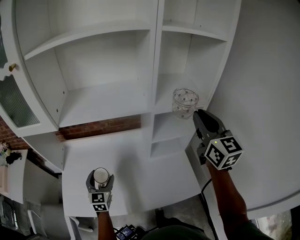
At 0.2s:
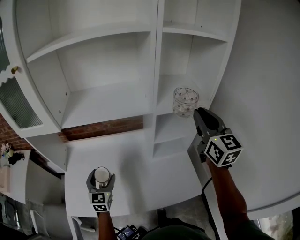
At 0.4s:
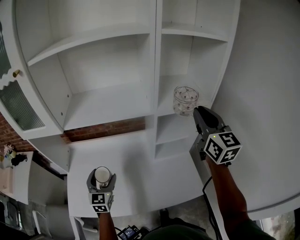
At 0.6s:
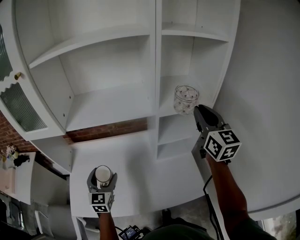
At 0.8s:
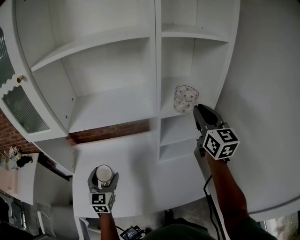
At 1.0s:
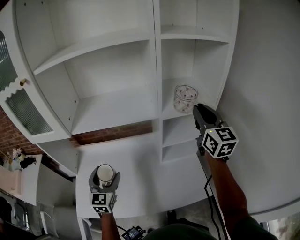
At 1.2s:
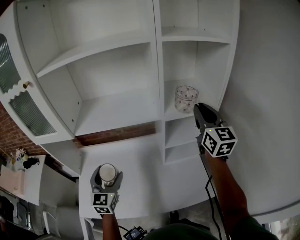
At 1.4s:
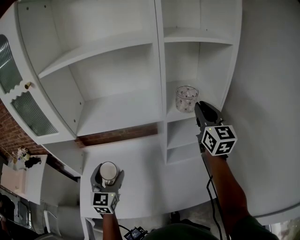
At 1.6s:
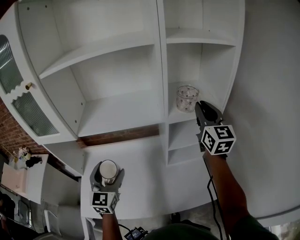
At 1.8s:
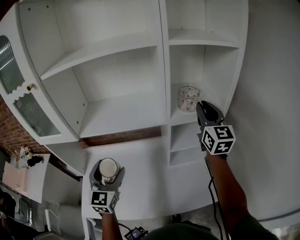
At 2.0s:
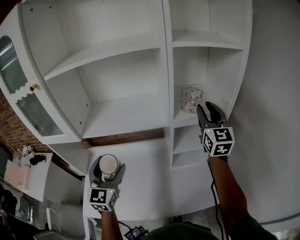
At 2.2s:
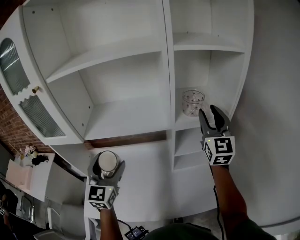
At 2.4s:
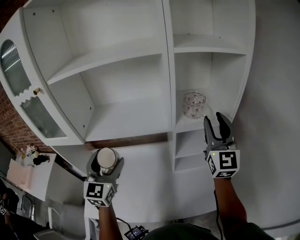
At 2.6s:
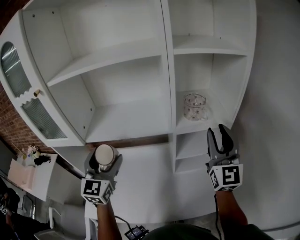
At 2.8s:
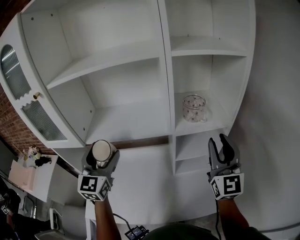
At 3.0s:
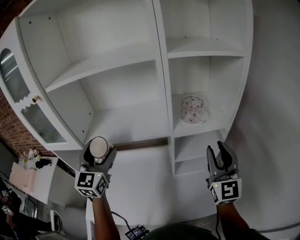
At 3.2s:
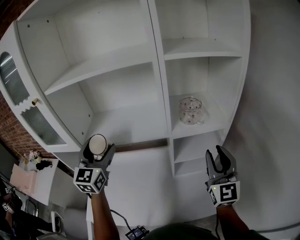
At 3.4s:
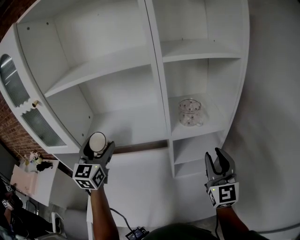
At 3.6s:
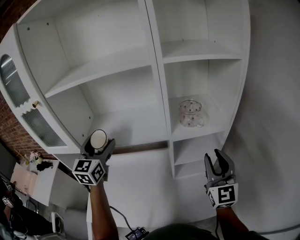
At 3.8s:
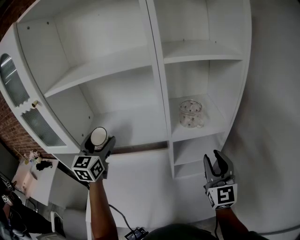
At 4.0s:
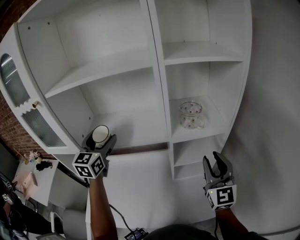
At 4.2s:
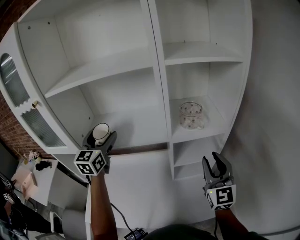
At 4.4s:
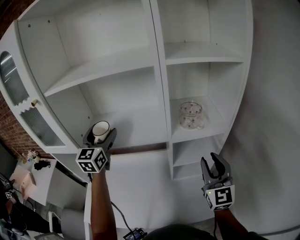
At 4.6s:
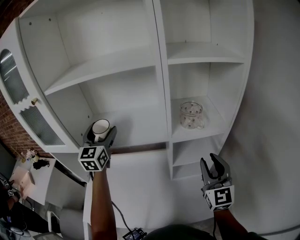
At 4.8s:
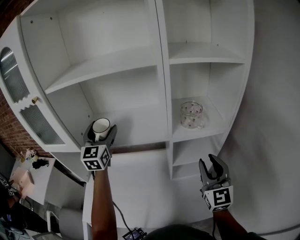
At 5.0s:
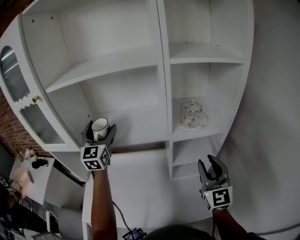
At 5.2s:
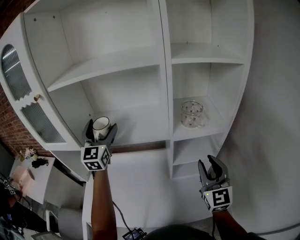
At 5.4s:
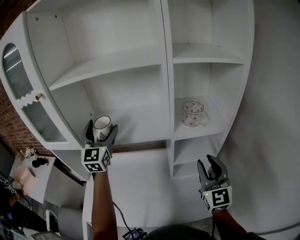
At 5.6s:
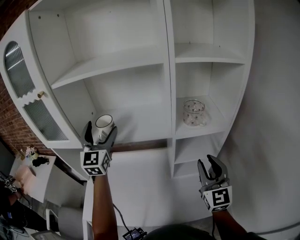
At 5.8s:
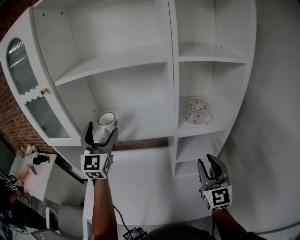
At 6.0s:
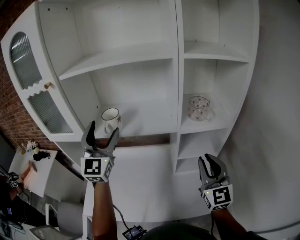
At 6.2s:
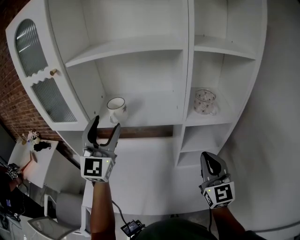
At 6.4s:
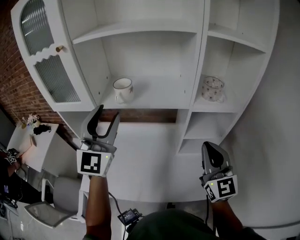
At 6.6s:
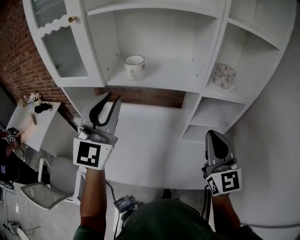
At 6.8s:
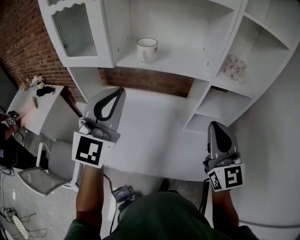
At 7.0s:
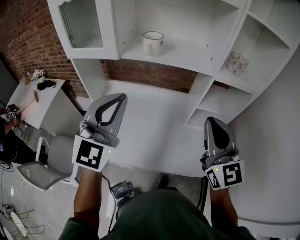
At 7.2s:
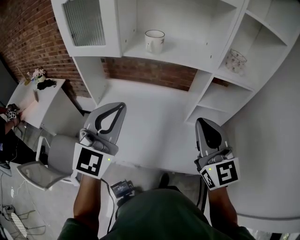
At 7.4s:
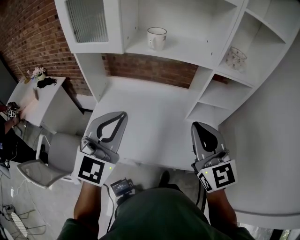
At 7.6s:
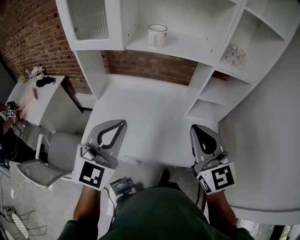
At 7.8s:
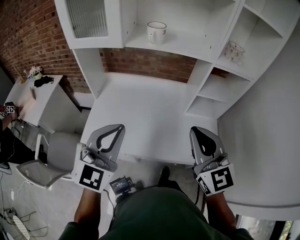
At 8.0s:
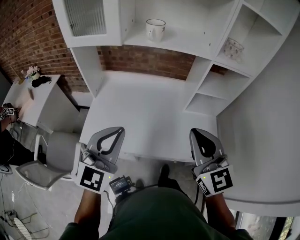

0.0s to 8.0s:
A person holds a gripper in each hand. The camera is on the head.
0.0s to 1.6s: The right gripper is displaced forward by approximately 10 cm. The left gripper shifts some 15 cm upward.
1.6s to 3.2s: The right gripper shifts some 10 cm backward. Meanwhile the left gripper goes approximately 15 cm upward and forward.
3.2s to 4.8s: The left gripper travels forward by roughly 10 cm.
4.8s to 6.4s: The right gripper heads to the left and backward, covering some 10 cm, and closes; the left gripper goes approximately 20 cm backward, and closes its fingers.
6.4s to 8.0s: The left gripper is displaced backward and downward by about 30 cm, turns by about 20 degrees, and closes. The right gripper shifts some 20 cm to the left and backward.

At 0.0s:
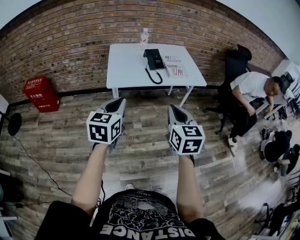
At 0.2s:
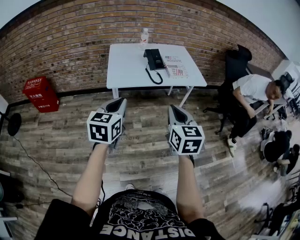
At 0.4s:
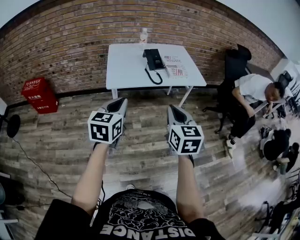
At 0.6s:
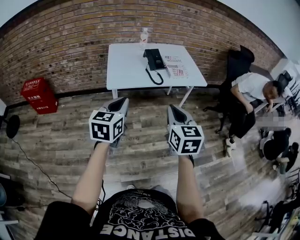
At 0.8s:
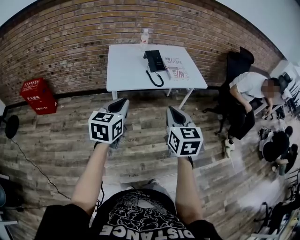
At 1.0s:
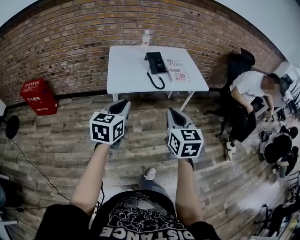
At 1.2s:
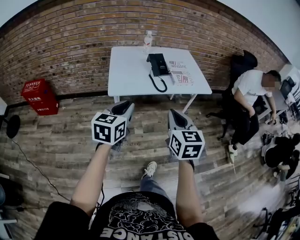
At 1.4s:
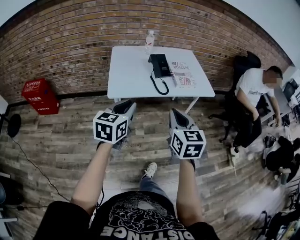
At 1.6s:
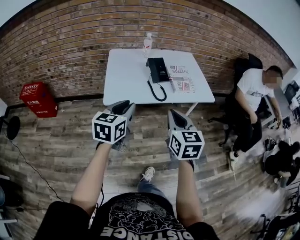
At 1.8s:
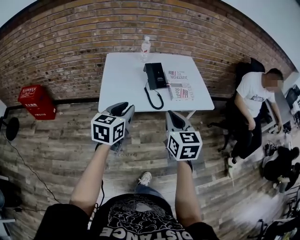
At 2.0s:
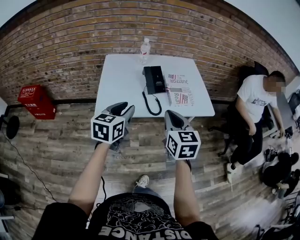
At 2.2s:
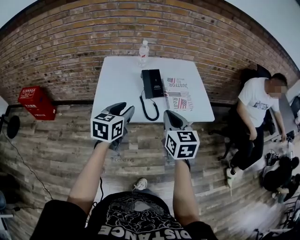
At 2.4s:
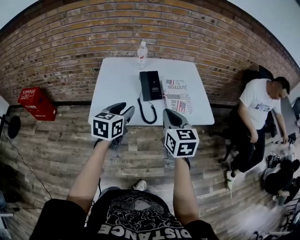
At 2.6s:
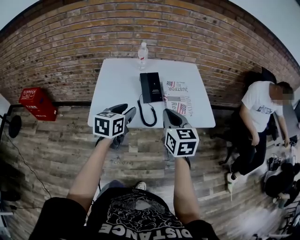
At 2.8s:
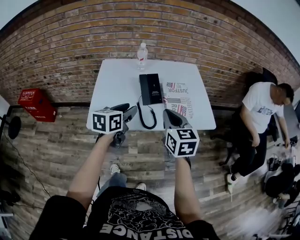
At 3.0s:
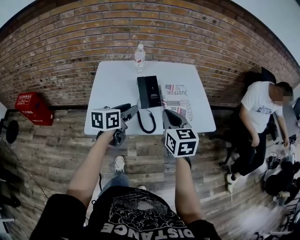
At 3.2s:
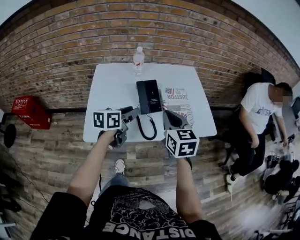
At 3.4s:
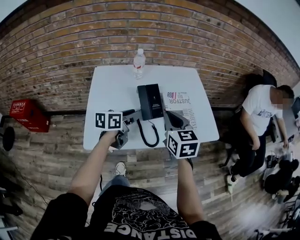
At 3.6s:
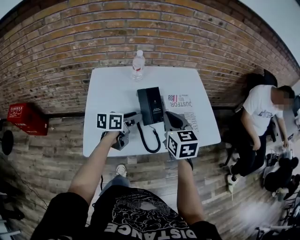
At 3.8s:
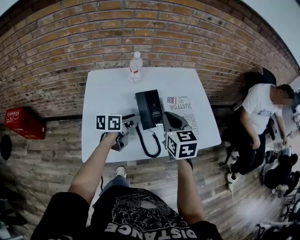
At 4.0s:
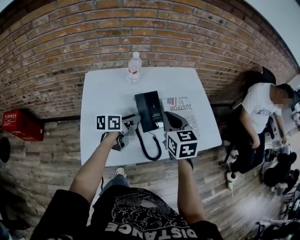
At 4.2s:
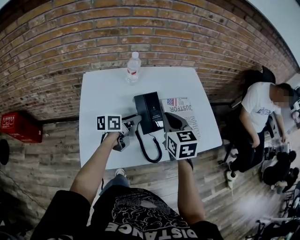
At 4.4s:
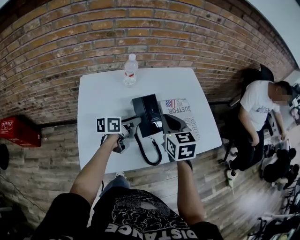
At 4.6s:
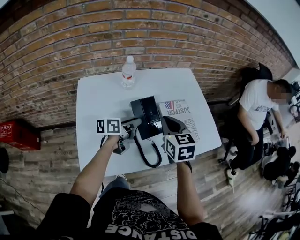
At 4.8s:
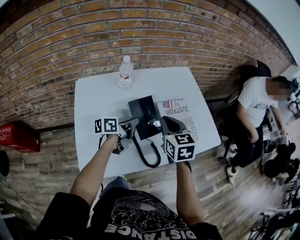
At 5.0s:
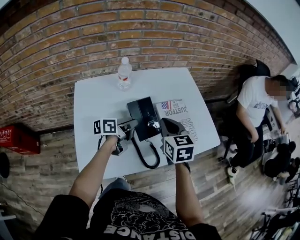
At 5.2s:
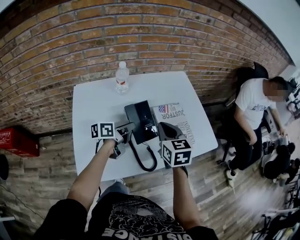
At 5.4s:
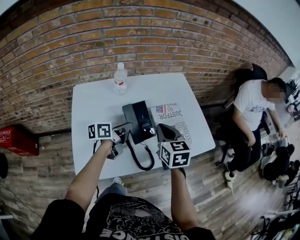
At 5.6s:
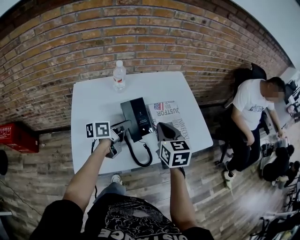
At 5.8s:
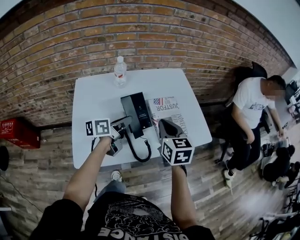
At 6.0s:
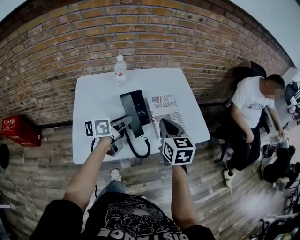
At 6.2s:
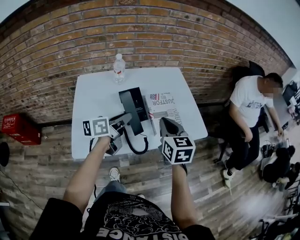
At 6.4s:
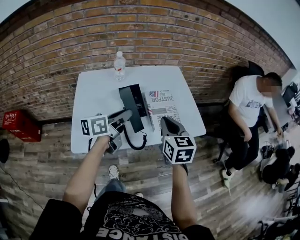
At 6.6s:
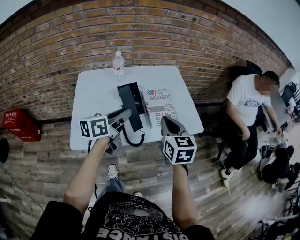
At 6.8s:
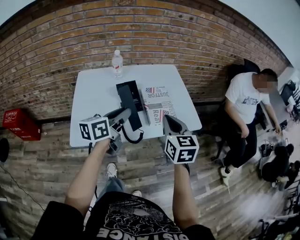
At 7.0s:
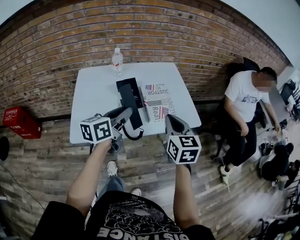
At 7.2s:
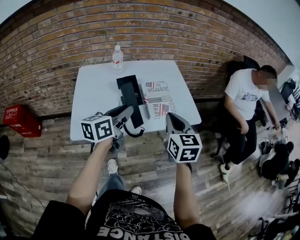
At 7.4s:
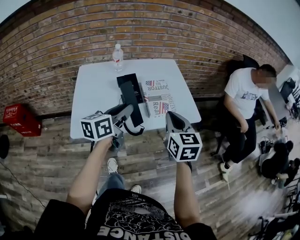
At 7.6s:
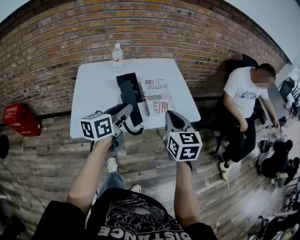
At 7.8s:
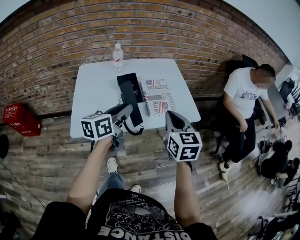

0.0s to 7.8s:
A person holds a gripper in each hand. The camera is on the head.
0.0s to 1.6s: The two grippers go some 15 cm forward.
1.6s to 3.2s: The grippers both shift forward by roughly 30 cm. The left gripper swivels roughly 30 degrees.
3.2s to 4.6s: The right gripper travels forward, downward and to the left by some 15 cm. Meanwhile the left gripper goes roughly 15 cm forward and downward, and rotates roughly 20 degrees.
4.6s to 6.2s: The right gripper goes roughly 10 cm to the right and backward, while the left gripper heads upward, backward and to the right, covering about 15 cm.
6.2s to 7.8s: The right gripper heads backward and to the right, covering approximately 10 cm. Meanwhile the left gripper shifts roughly 10 cm backward and upward.

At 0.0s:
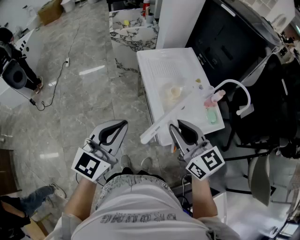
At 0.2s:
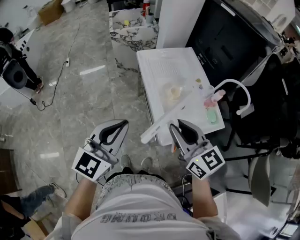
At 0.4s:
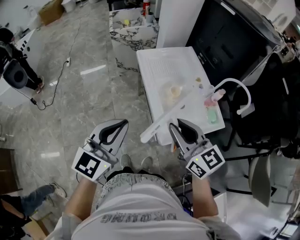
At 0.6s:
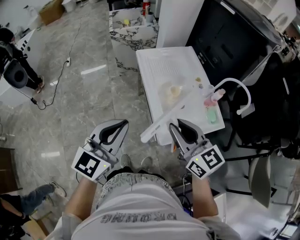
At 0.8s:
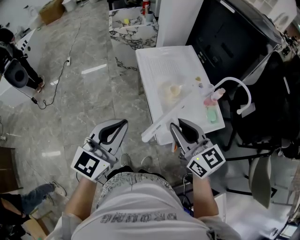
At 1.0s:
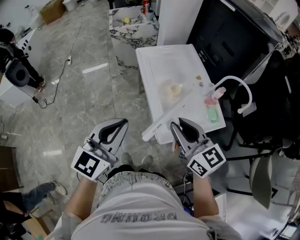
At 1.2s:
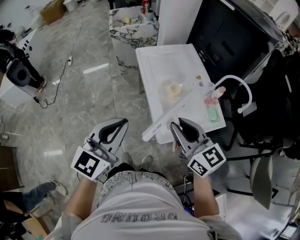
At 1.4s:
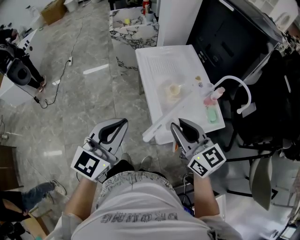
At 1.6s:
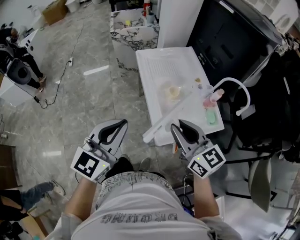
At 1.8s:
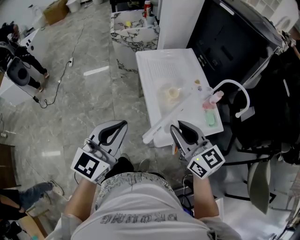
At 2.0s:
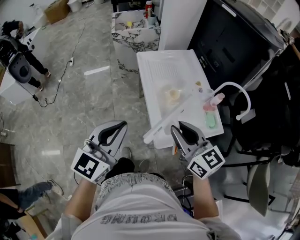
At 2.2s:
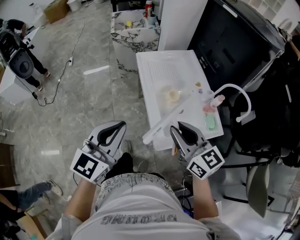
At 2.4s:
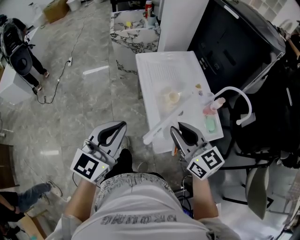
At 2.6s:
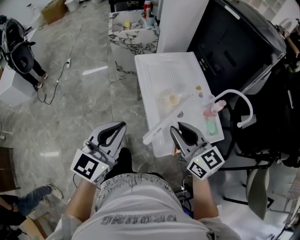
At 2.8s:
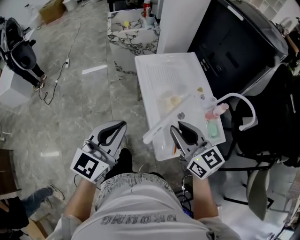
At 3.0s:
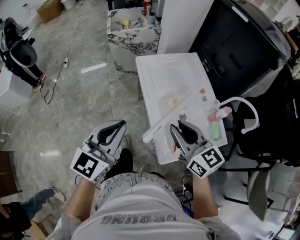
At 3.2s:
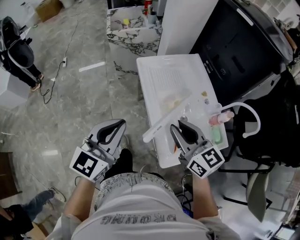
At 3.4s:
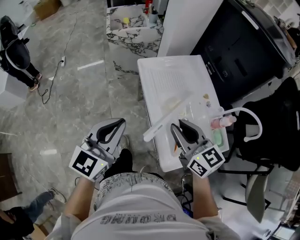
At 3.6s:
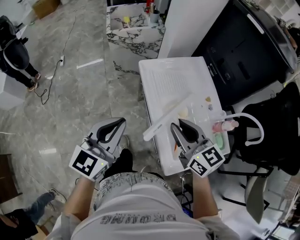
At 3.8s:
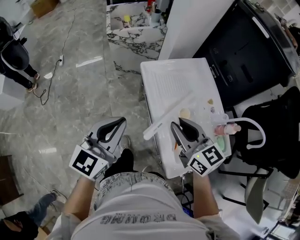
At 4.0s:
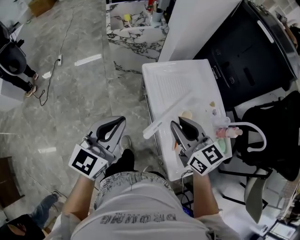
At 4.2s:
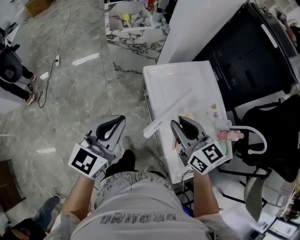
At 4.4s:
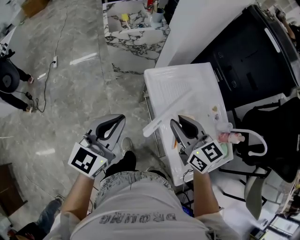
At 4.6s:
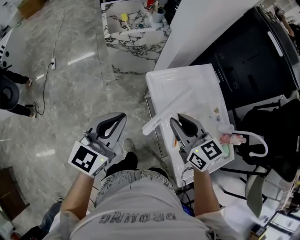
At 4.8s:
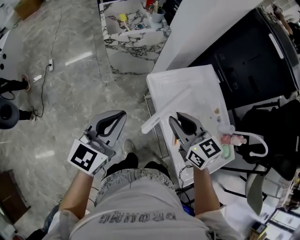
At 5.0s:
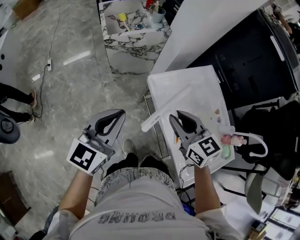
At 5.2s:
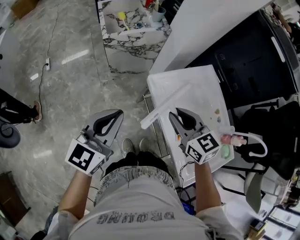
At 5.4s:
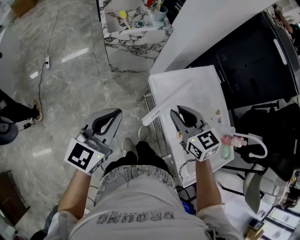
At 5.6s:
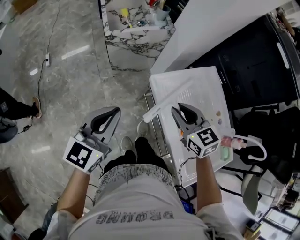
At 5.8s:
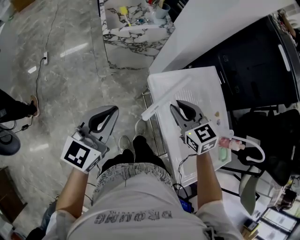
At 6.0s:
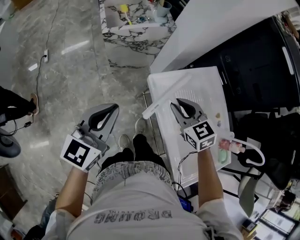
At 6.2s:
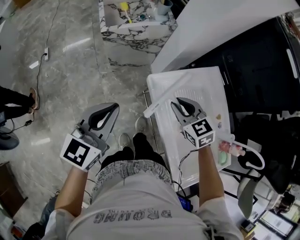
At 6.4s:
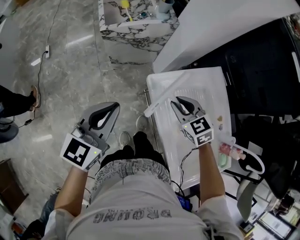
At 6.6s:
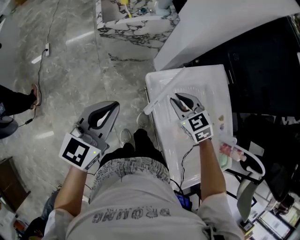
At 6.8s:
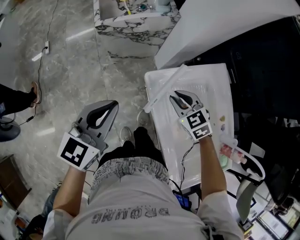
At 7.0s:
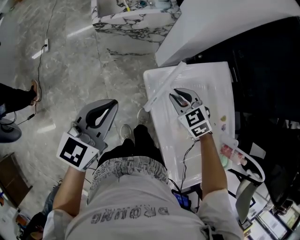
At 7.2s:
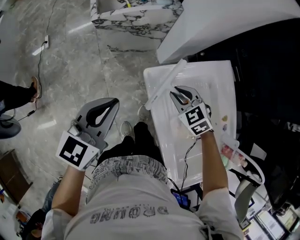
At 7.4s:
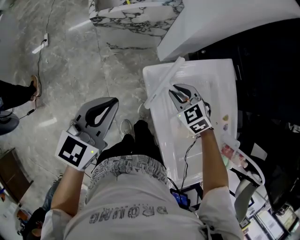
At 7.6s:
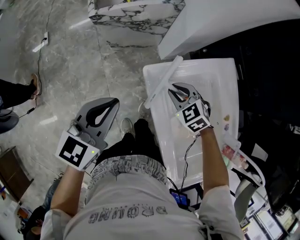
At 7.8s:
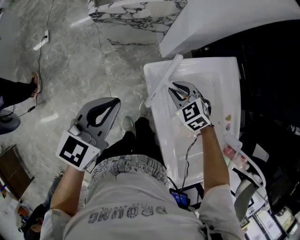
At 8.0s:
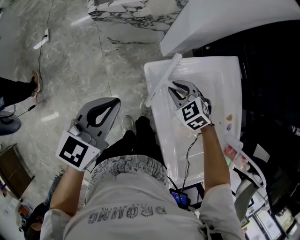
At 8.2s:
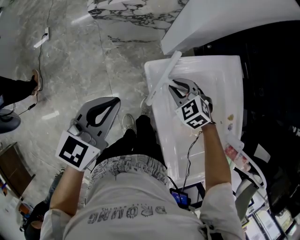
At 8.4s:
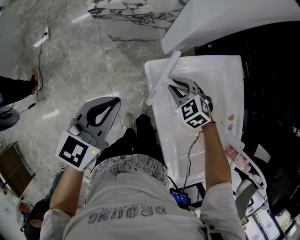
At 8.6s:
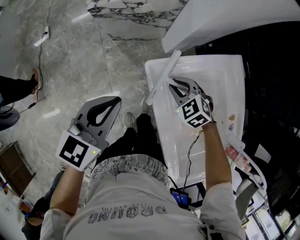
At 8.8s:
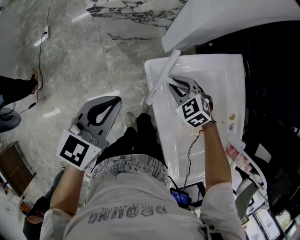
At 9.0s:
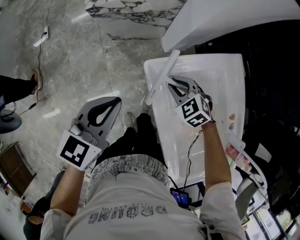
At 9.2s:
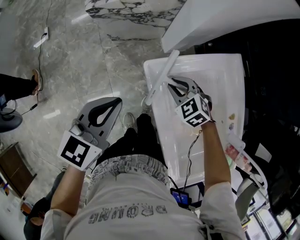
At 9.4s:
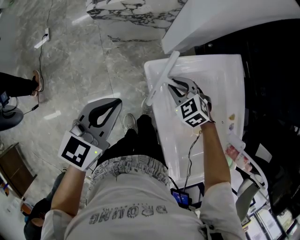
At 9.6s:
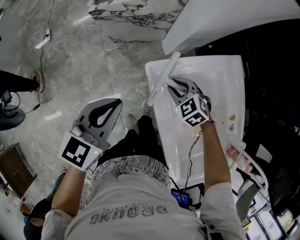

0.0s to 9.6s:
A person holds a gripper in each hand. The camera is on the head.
0.0s to 1.6s: The grippers make only small movements.
1.6s to 3.2s: The two grippers go approximately 15 cm forward.
3.2s to 4.8s: The two grippers go some 25 cm forward and to the left.
4.8s to 6.4s: The right gripper goes some 15 cm forward and downward, and changes its angle by some 30 degrees. The left gripper travels forward by approximately 10 cm.
6.4s to 8.0s: The right gripper shifts about 10 cm downward; the left gripper is displaced downward and to the right by about 10 cm.
8.0s to 9.6s: The grippers make only small movements.
